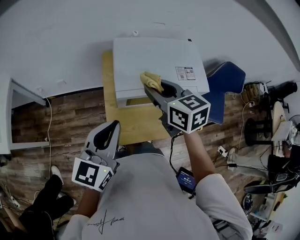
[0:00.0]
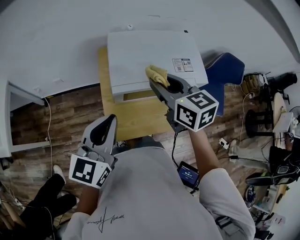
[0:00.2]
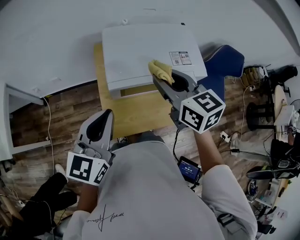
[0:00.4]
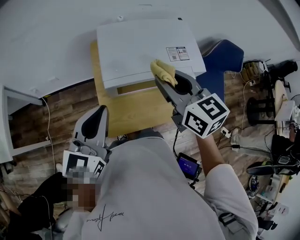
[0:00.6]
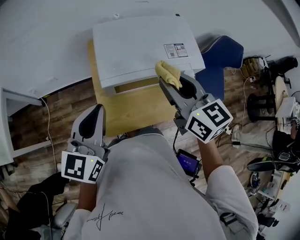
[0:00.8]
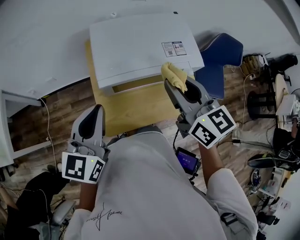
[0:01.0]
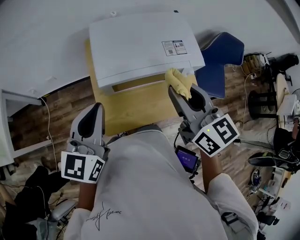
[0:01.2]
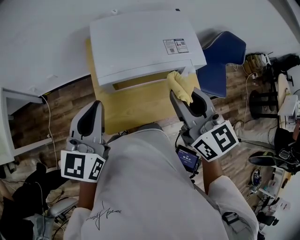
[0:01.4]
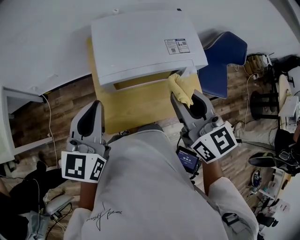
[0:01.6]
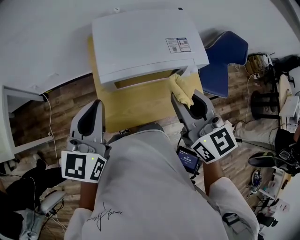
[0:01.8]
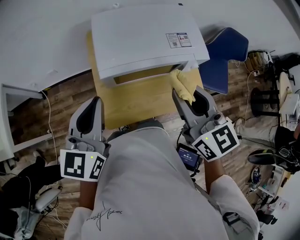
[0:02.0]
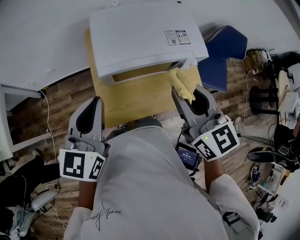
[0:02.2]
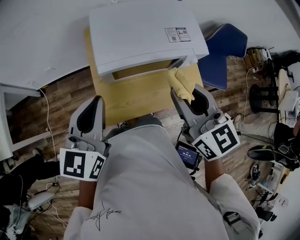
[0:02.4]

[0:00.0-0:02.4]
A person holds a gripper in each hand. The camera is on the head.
0.0 to 1.2 s: The right gripper moves to the right and backward, some 15 cm.
1.2 to 2.4 s: There are only small adjustments of the grippers.

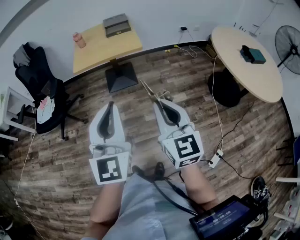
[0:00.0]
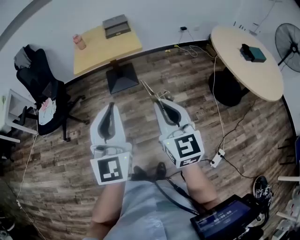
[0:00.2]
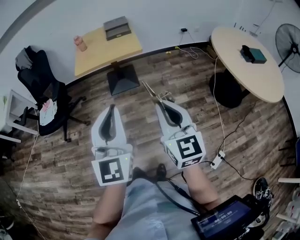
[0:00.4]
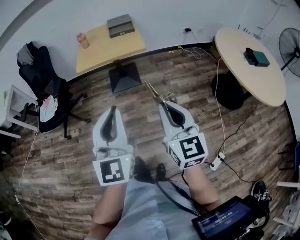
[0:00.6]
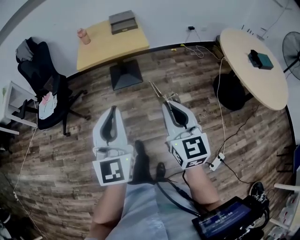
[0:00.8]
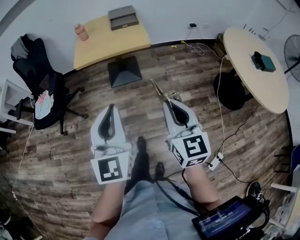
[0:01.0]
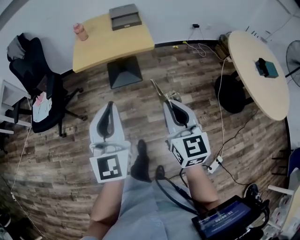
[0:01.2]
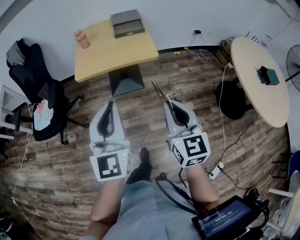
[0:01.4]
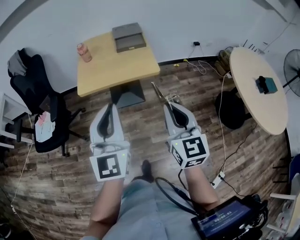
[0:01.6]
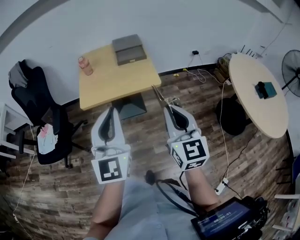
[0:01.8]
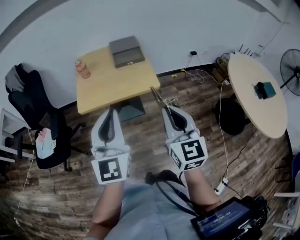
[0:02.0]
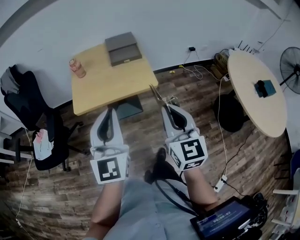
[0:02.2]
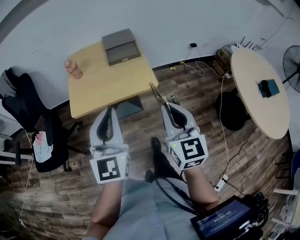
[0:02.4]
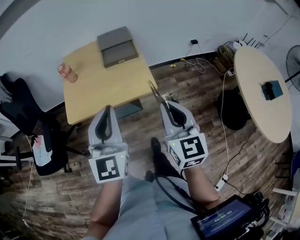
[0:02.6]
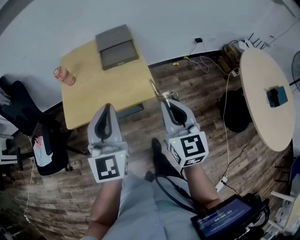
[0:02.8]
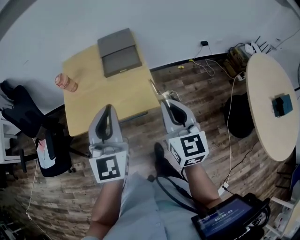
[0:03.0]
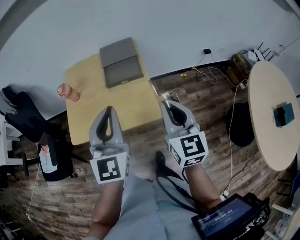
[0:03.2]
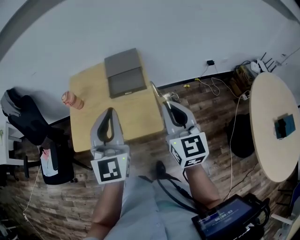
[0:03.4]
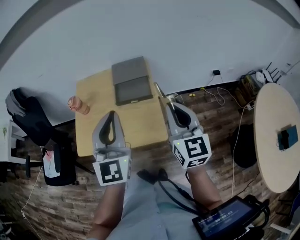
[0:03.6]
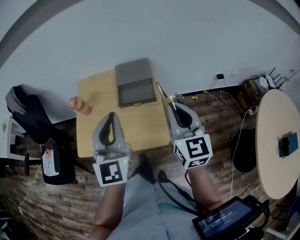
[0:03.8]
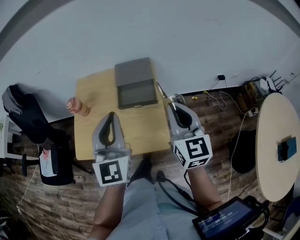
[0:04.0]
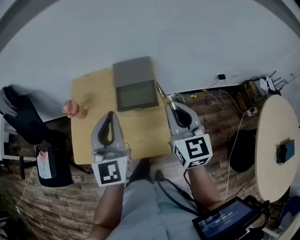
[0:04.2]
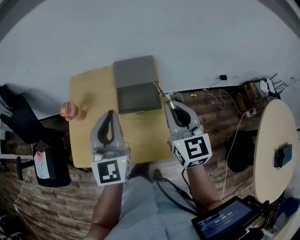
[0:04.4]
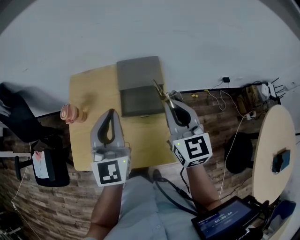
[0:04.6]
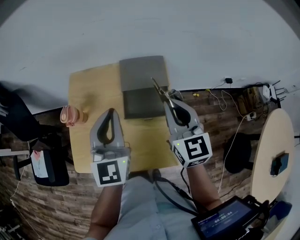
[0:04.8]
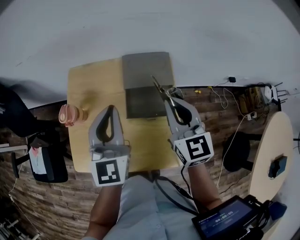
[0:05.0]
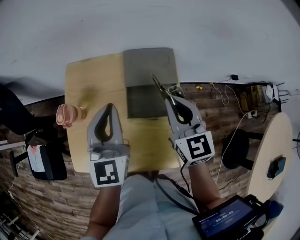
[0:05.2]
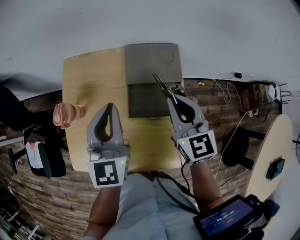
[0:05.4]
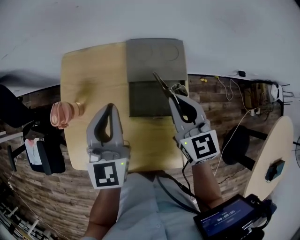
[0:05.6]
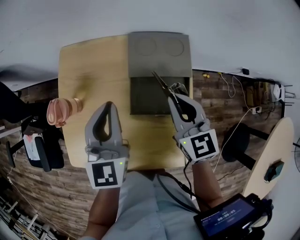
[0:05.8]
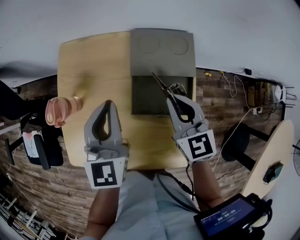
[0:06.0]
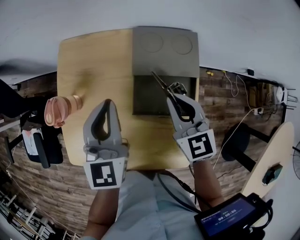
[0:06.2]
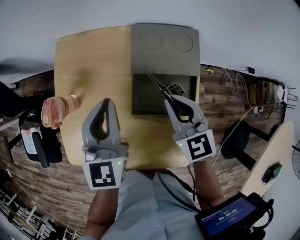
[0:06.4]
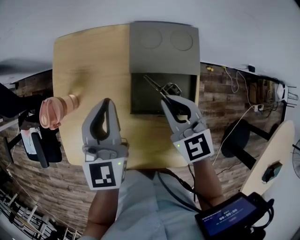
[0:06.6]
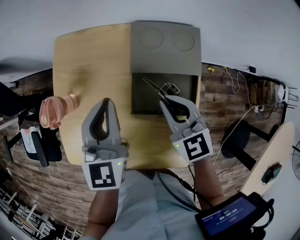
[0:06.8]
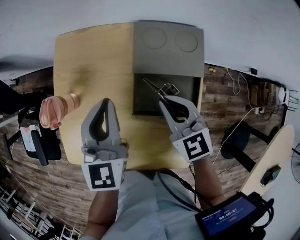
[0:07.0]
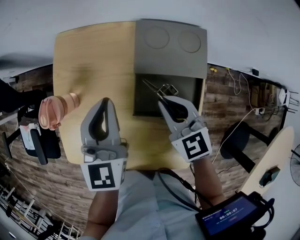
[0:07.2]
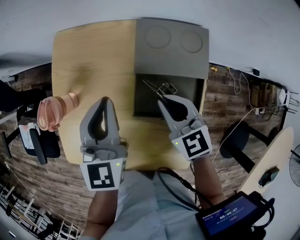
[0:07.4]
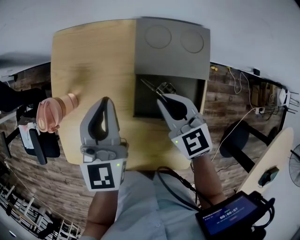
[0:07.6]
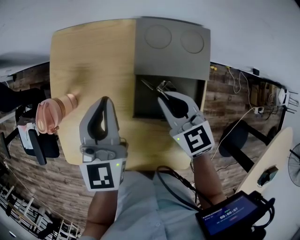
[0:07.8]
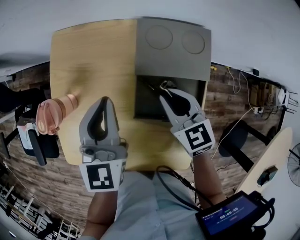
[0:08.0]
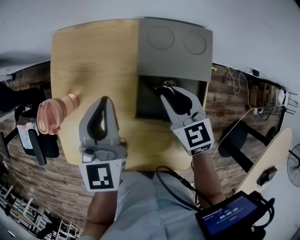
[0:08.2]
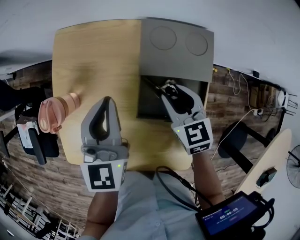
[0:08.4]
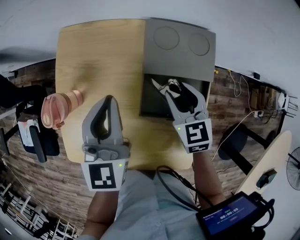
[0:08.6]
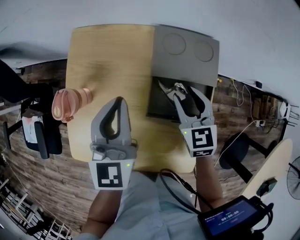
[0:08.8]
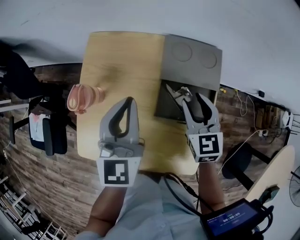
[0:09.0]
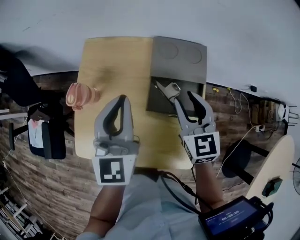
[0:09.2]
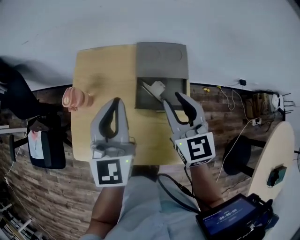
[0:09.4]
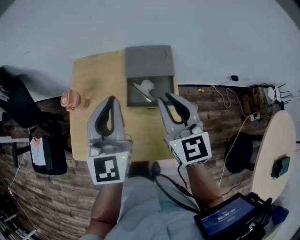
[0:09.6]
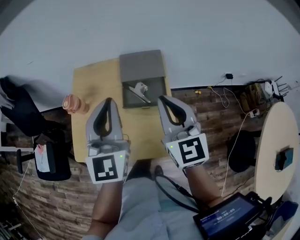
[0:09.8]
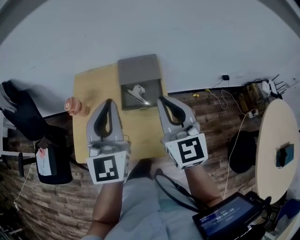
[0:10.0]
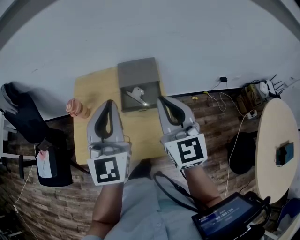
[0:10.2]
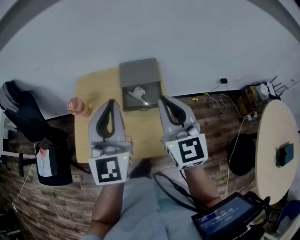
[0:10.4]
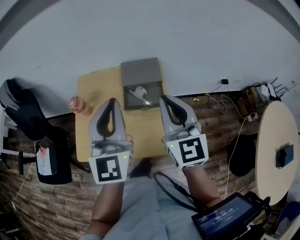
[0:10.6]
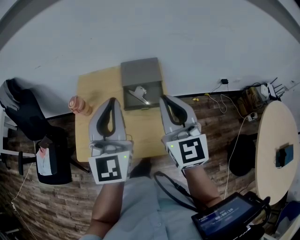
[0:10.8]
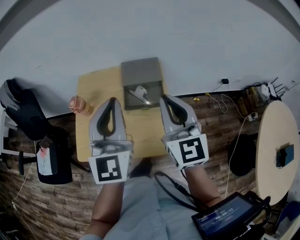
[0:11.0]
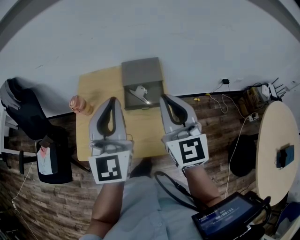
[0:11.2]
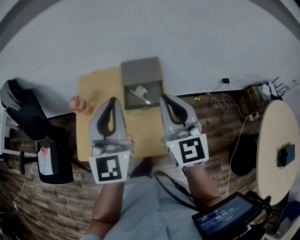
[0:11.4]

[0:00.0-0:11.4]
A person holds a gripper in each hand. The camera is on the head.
0.0 to 1.4 s: The two grippers go some 20 cm forward.
1.4 to 2.8 s: Both grippers travel together forward, some 30 cm.
2.8 to 4.2 s: Both grippers move forward, approximately 25 cm.
4.2 to 5.6 s: The grippers both shift forward and downward by some 25 cm.
5.6 to 7.2 s: The left gripper heads downward, covering approximately 5 cm. Meanwhile the right gripper shifts some 10 cm downward and to the left, and changes its angle by about 20 degrees.
7.2 to 8.6 s: The right gripper ends up roughly 5 cm from where it was, and opens.
8.6 to 10.0 s: The grippers both shift upward and backward by approximately 35 cm. The right gripper tilts its fingers about 40 degrees upward, and closes. The left gripper rotates roughly 30 degrees.
10.0 to 11.4 s: There are only small adjustments of the grippers.

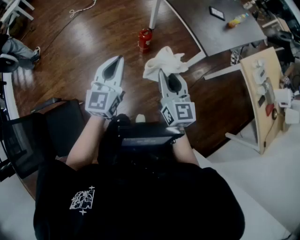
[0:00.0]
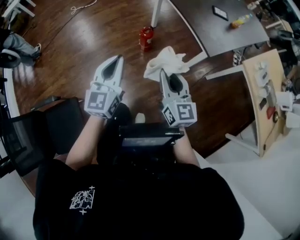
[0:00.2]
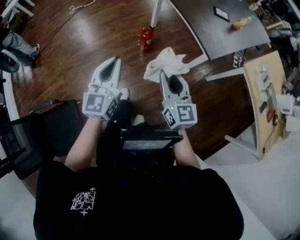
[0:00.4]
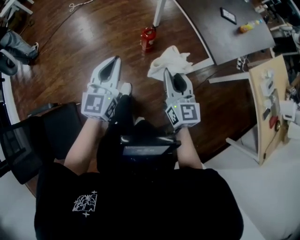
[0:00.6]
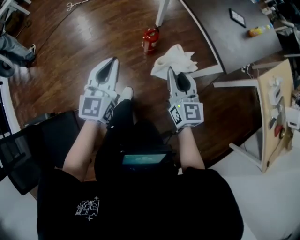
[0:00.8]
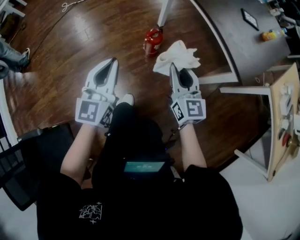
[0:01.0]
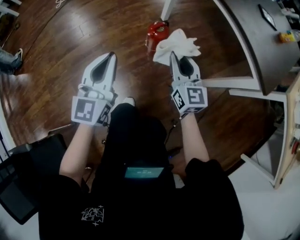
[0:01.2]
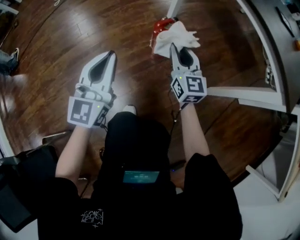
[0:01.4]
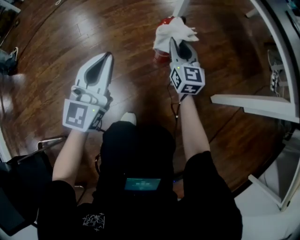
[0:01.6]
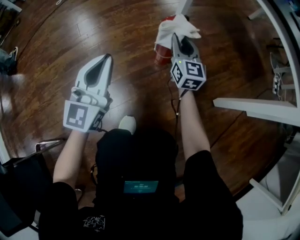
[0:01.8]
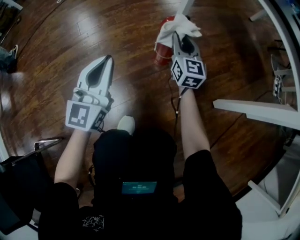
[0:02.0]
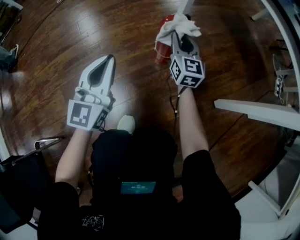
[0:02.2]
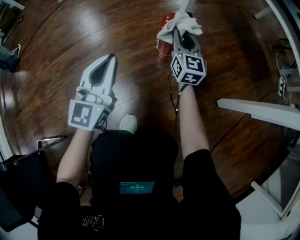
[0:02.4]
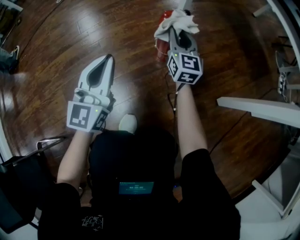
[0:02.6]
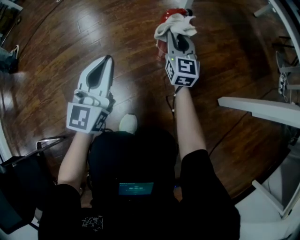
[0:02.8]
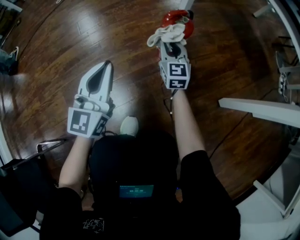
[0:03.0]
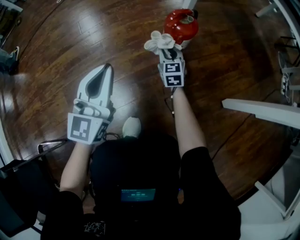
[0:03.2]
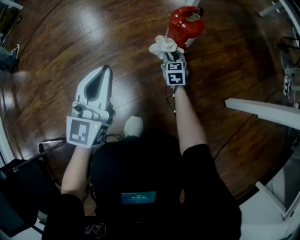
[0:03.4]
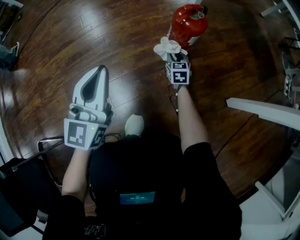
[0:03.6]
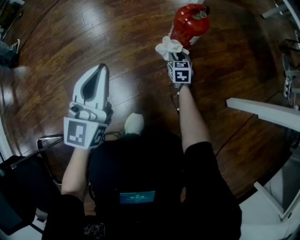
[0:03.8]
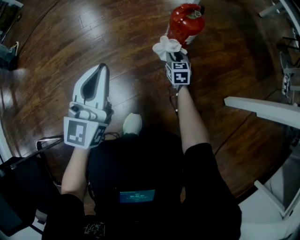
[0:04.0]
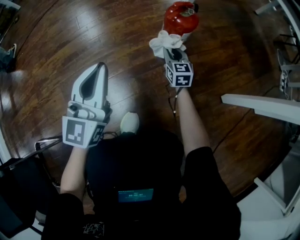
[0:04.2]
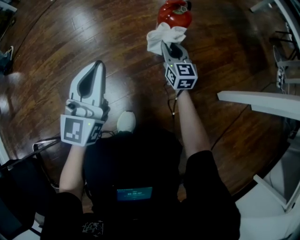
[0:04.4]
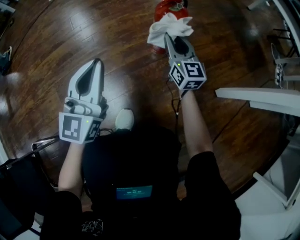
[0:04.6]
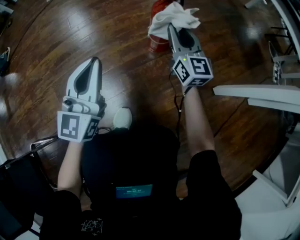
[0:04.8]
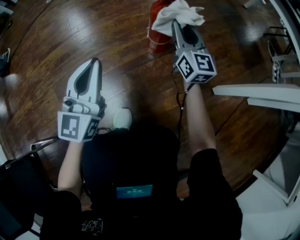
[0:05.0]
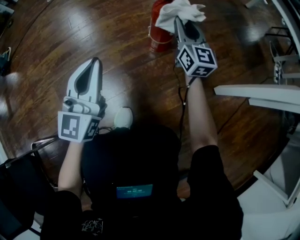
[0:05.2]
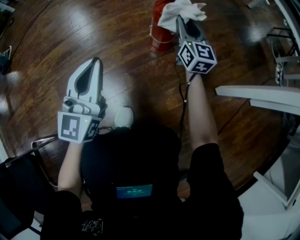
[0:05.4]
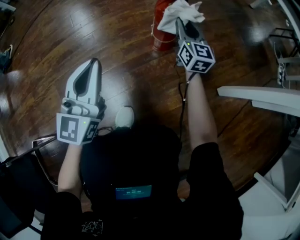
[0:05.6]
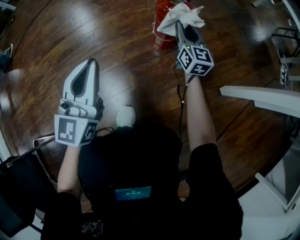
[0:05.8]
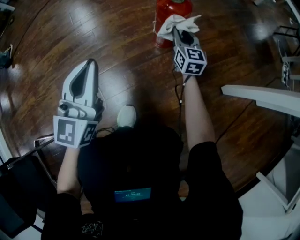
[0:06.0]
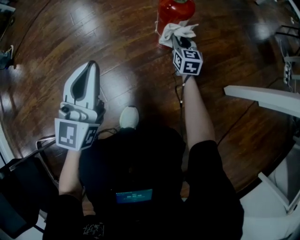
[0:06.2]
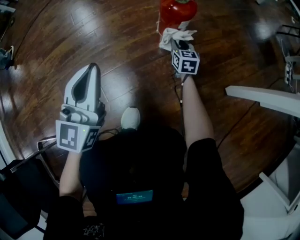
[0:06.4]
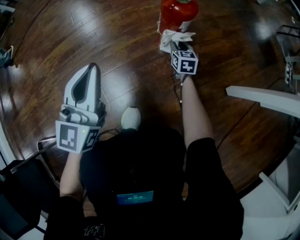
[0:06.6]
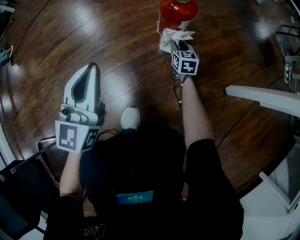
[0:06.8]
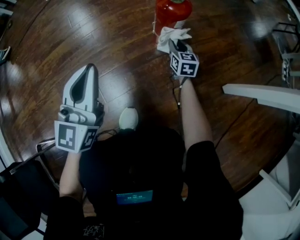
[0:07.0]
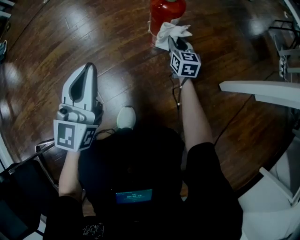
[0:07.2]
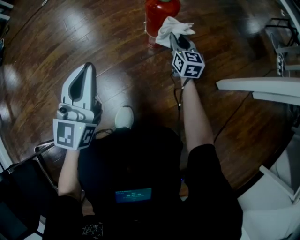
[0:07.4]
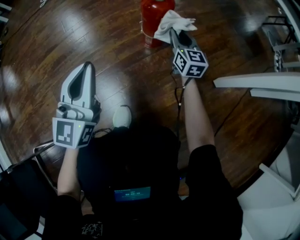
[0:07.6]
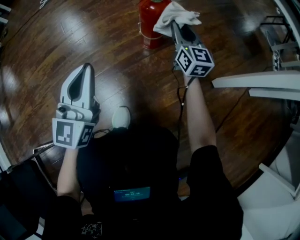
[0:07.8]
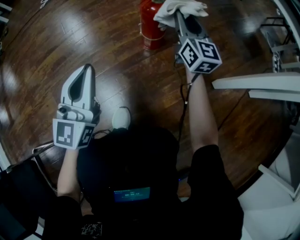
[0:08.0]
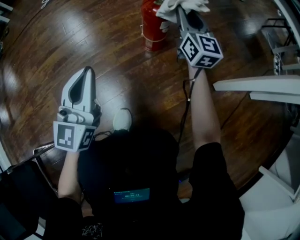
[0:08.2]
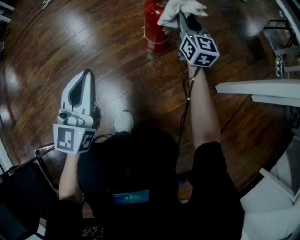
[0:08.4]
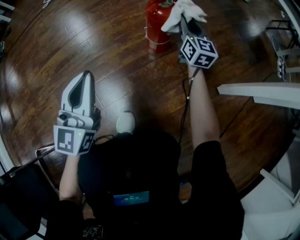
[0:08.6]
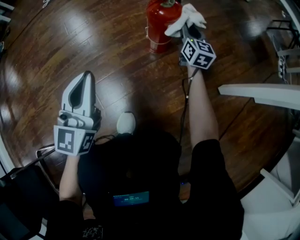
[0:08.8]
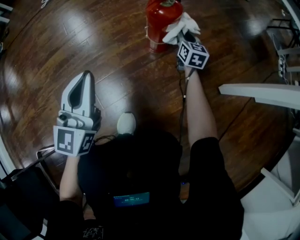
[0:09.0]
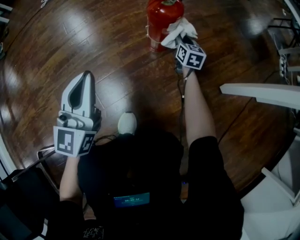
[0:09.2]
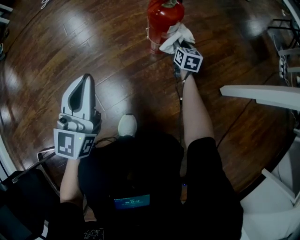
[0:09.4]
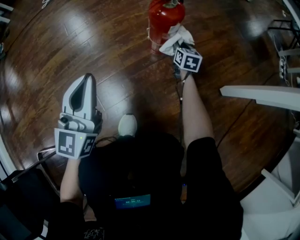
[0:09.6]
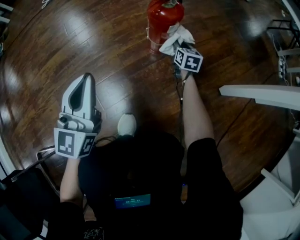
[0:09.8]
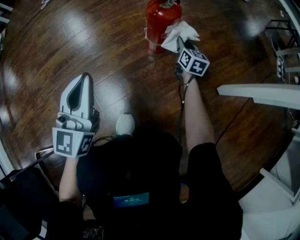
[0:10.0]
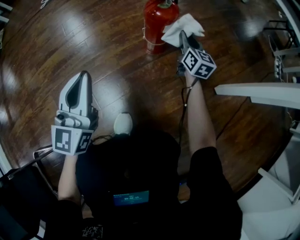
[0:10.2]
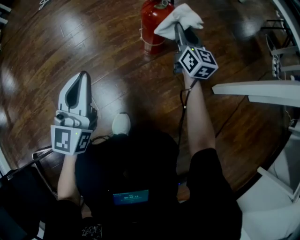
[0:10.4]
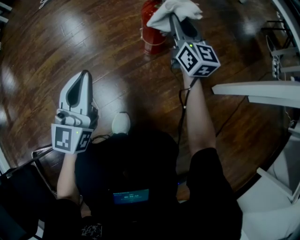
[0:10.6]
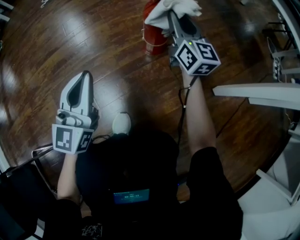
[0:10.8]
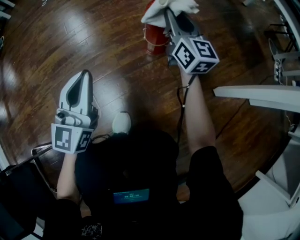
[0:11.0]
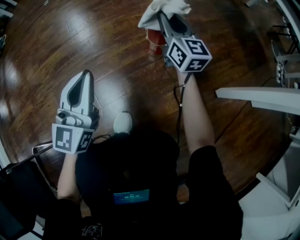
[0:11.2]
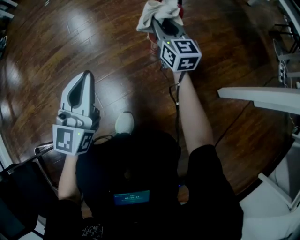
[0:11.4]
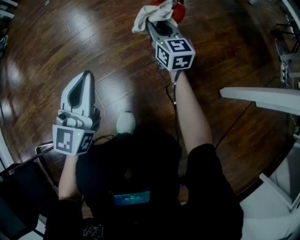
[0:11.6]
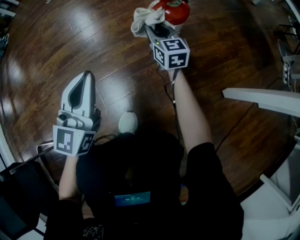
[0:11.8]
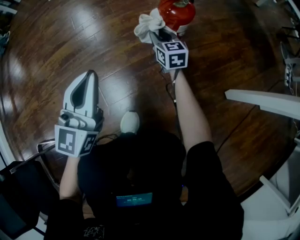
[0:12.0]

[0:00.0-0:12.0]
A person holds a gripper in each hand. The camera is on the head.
0.0 to 1.6 s: The grippers both shift downward and forward by approximately 60 cm.
1.6 to 3.0 s: Both grippers travel together downward, about 10 cm.
3.0 to 4.4 s: The right gripper reaches approximately 20 cm downward, then returns.
4.4 to 6.0 s: The right gripper is displaced to the right by roughly 5 cm, and reaches about 15 cm upward, then returns.
6.0 to 7.6 s: The right gripper reaches approximately 15 cm downward, then returns.
7.6 to 9.0 s: The right gripper goes roughly 10 cm downward and forward.
9.0 to 10.4 s: The right gripper shifts approximately 15 cm upward.
10.4 to 12.0 s: The right gripper shifts some 20 cm to the left and downward, and swivels approximately 20 degrees.
